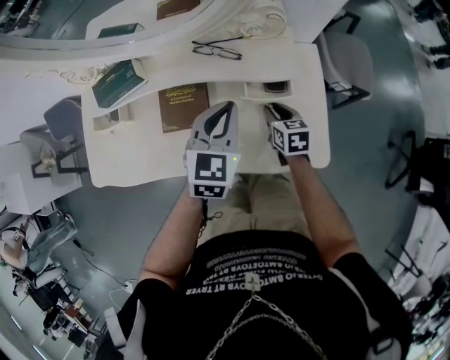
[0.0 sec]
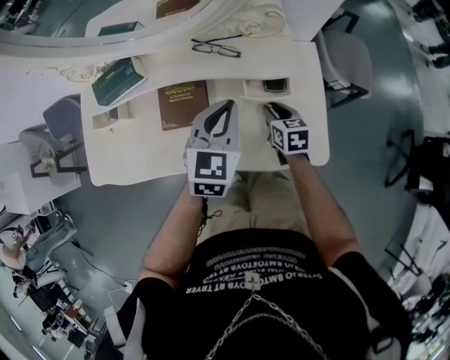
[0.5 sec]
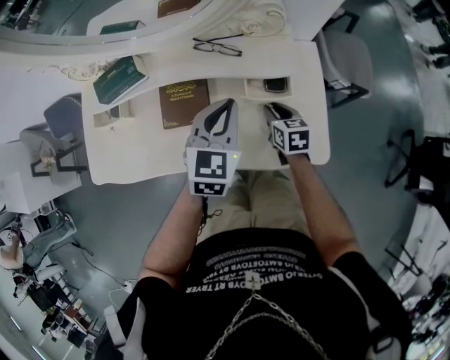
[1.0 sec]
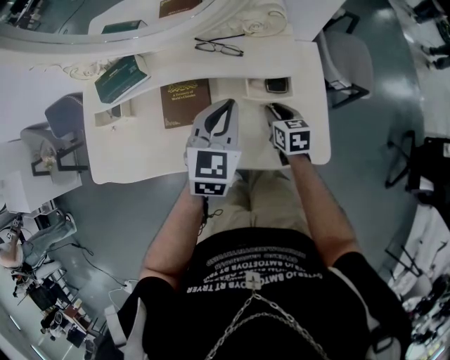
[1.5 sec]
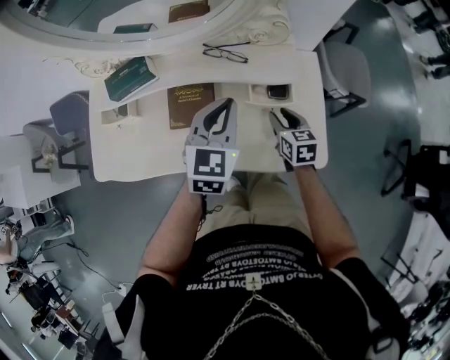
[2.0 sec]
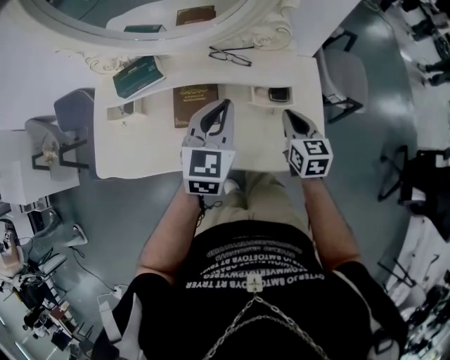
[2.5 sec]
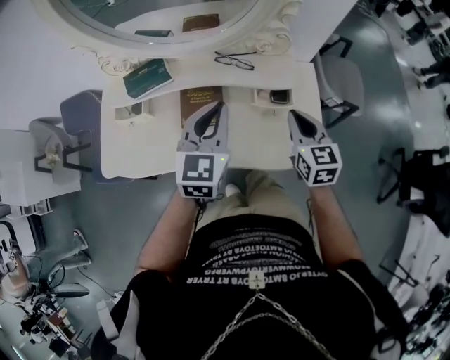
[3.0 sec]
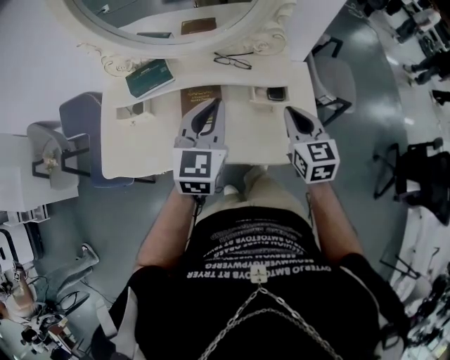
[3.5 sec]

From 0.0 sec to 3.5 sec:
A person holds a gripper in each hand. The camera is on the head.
From 0.0 sec to 2.0 sec: The grippers make only small movements.
From 2.0 sec to 3.5 sec: The right gripper heads upward, covering some 20 cm, rotates roughly 20 degrees, and closes its fingers, while the left gripper shifts some 15 cm upward, to the left and backward.

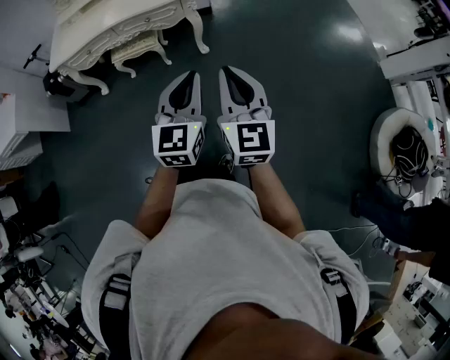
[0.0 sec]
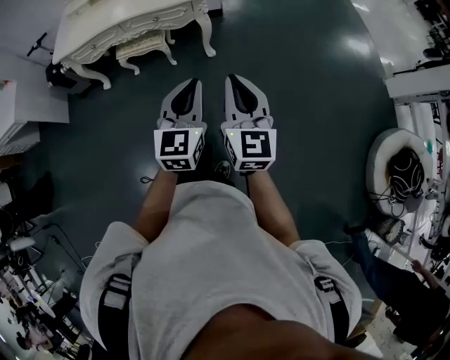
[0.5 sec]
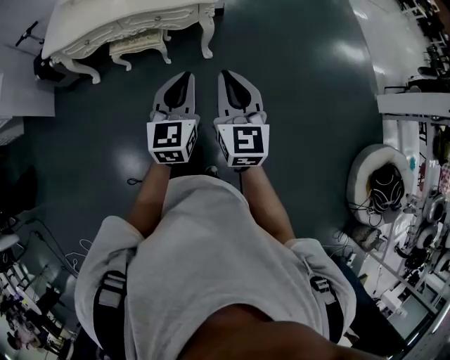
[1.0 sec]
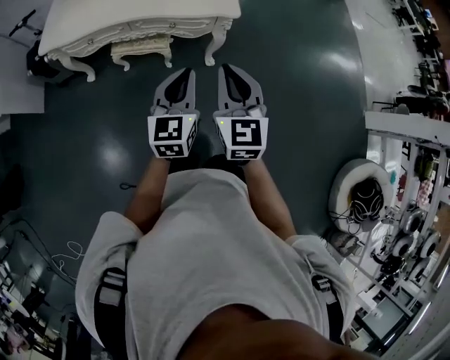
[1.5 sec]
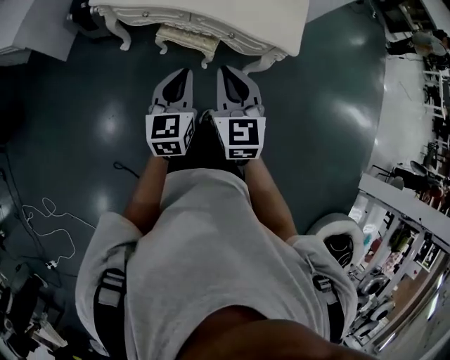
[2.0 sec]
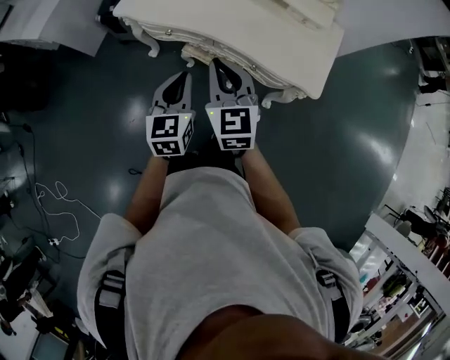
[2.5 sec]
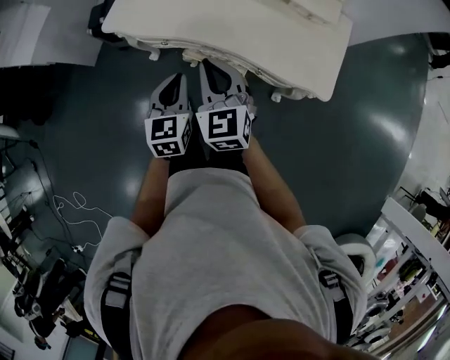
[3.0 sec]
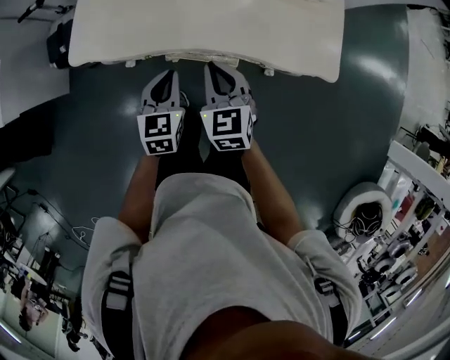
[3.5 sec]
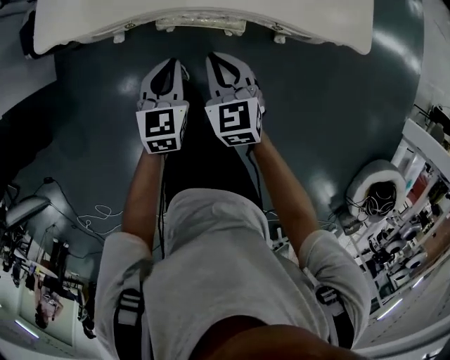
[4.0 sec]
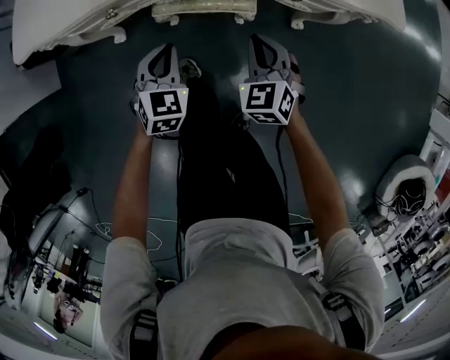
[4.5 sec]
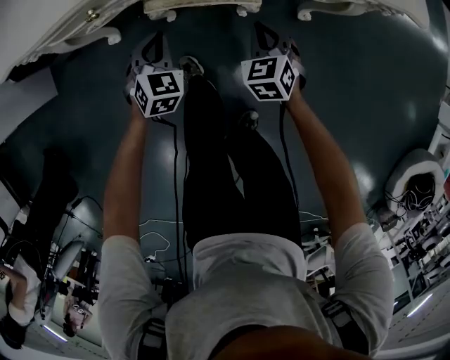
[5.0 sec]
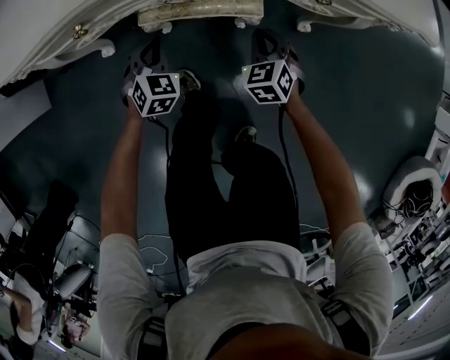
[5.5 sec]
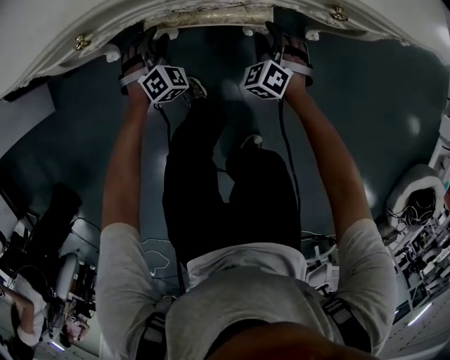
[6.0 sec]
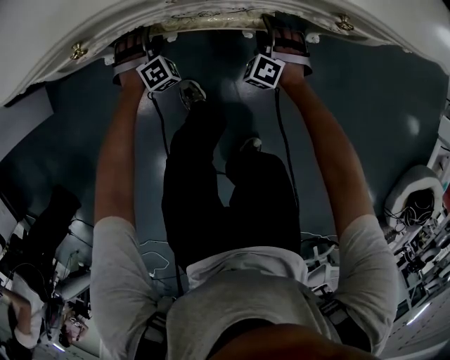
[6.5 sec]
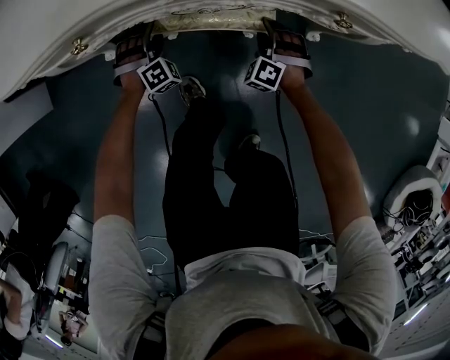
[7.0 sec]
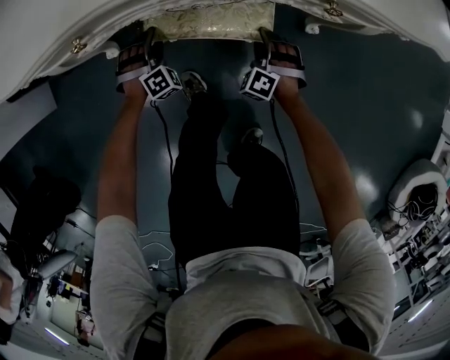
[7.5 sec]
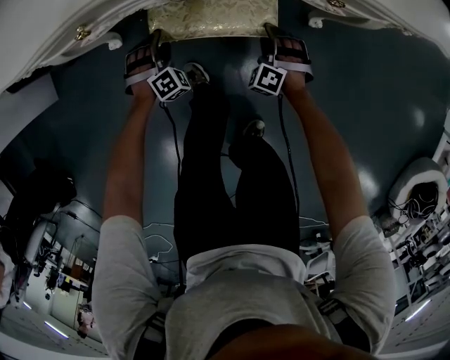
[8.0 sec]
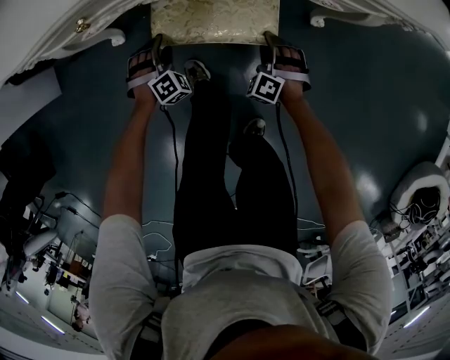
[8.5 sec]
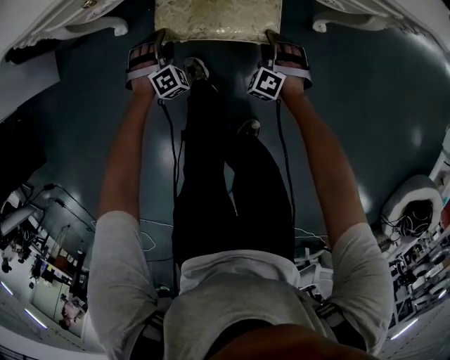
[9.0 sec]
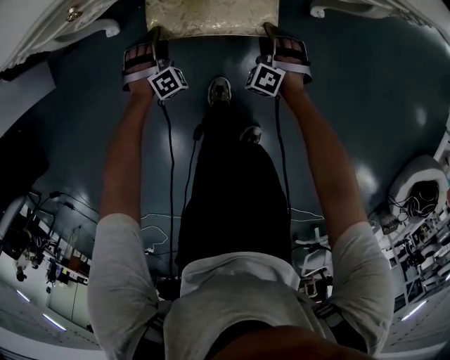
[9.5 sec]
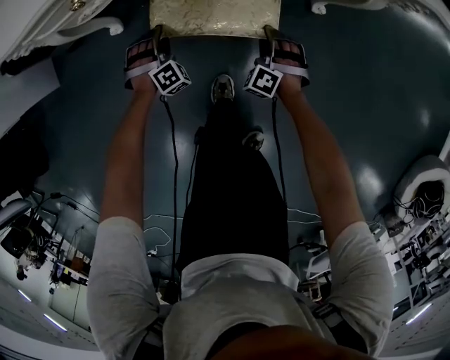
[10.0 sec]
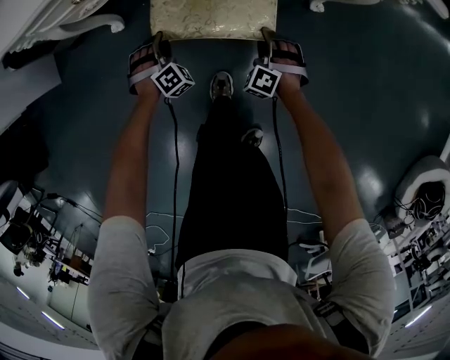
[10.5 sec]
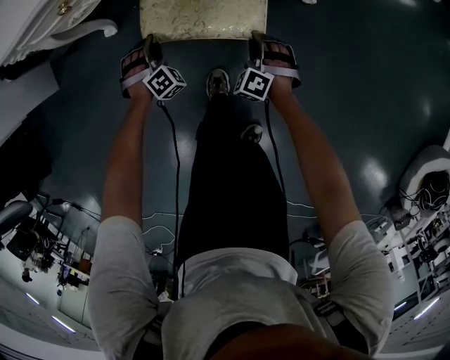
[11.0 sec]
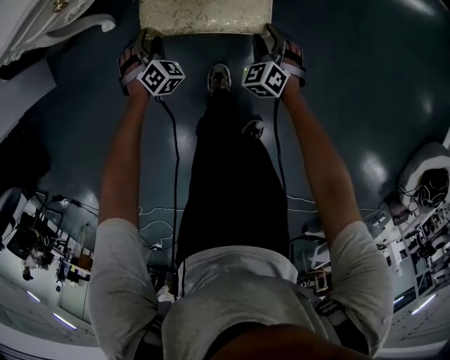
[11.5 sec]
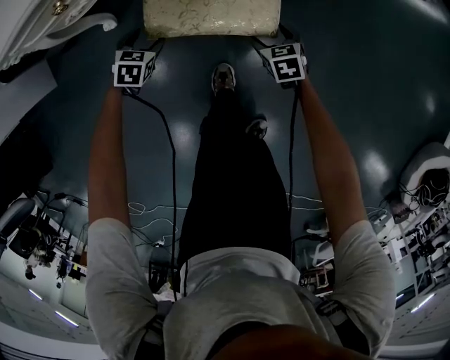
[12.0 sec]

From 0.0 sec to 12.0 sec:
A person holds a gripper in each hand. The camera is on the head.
From 0.0 sec to 2.0 sec: The pair of grippers is taken about 40 cm. The right gripper rotates roughly 30 degrees. The left gripper rotates some 30 degrees.
From 2.0 sec to 4.0 sec: Both grippers travel together downward and forward, roughly 35 cm. The left gripper changes its angle by roughly 30 degrees. The right gripper turns by approximately 20 degrees.
From 4.0 sec to 6.0 sec: The two grippers go some 35 cm downward. The right gripper rotates approximately 50 degrees, and opens its fingers. The left gripper rolls clockwise, seen from behind, by some 60 degrees, and opens.
From 6.0 sec to 8.0 sec: Both grippers travel together backward, approximately 5 cm.
From 8.0 sec to 10.0 sec: The two grippers go about 5 cm backward.
From 10.0 sec to 12.0 sec: The left gripper rotates around the line of its fingers by approximately 50 degrees, counterclockwise from behind; the right gripper rolls clockwise, seen from behind, by some 60 degrees, and opens its fingers.

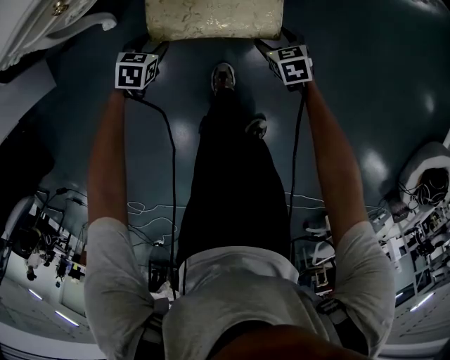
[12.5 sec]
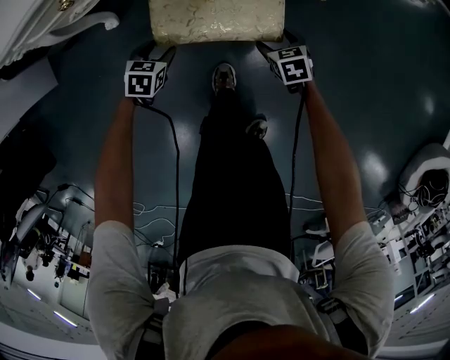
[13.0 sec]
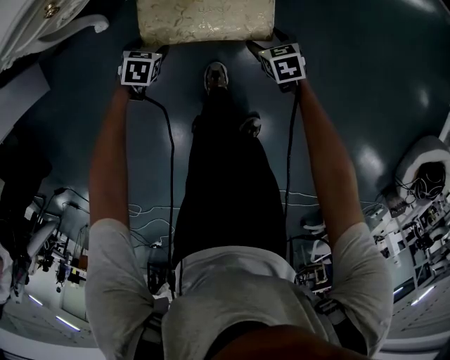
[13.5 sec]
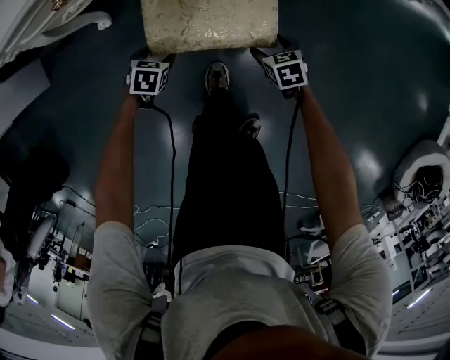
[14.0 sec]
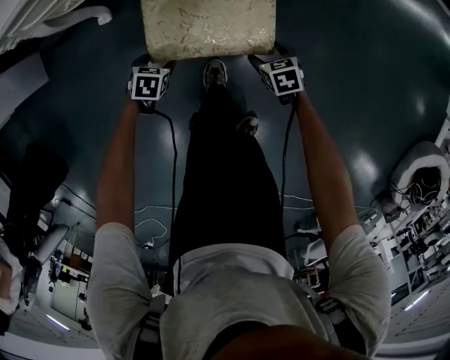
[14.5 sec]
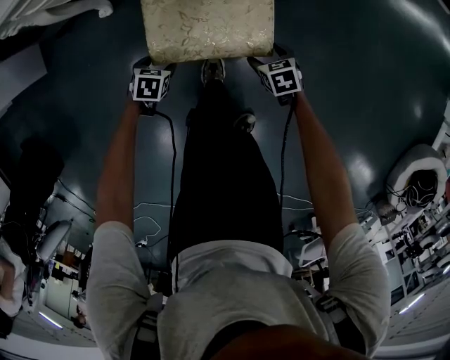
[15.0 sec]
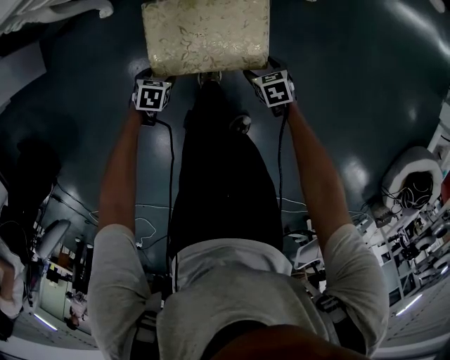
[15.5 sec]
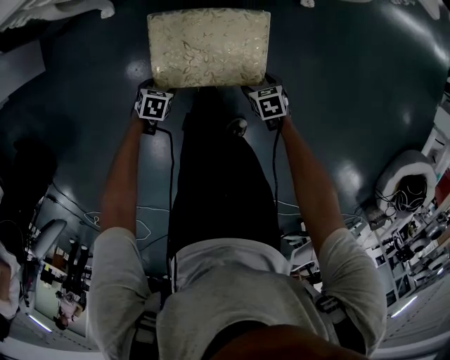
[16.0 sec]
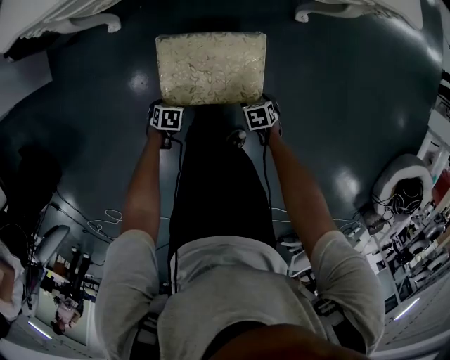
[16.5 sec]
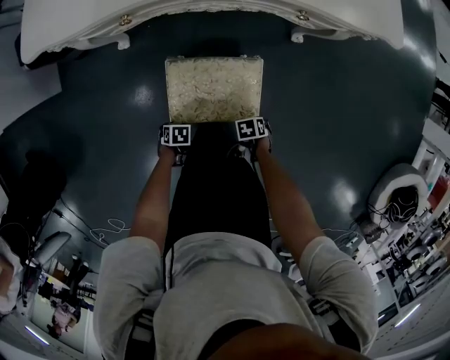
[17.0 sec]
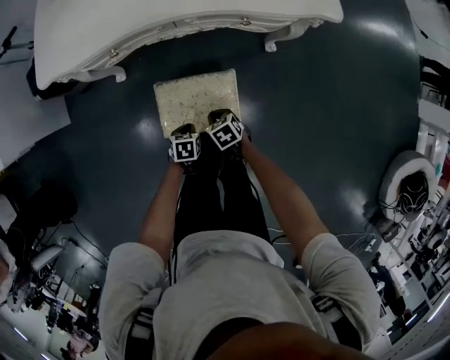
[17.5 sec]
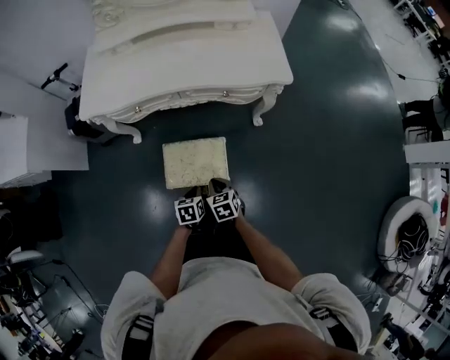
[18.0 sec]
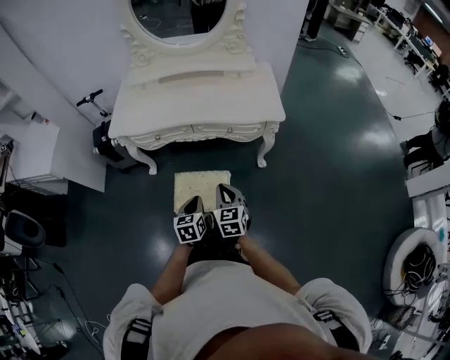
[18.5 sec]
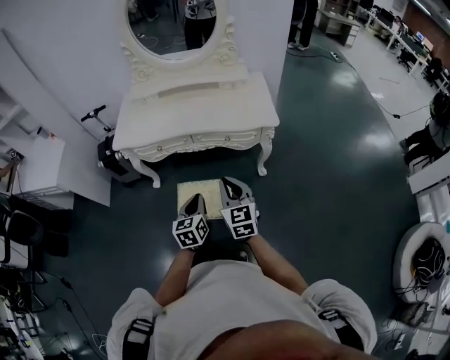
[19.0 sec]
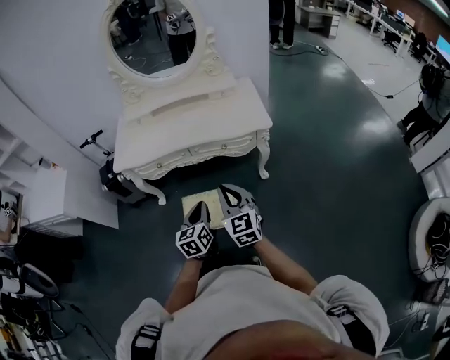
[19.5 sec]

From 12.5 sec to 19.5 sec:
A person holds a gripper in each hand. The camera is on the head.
From 12.5 sec to 14.5 sec: Both grippers travel together backward, roughly 10 cm.
From 14.5 sec to 16.0 sec: The right gripper changes place by some 10 cm. Meanwhile the left gripper moves about 10 cm.
From 16.0 sec to 17.5 sec: Both grippers travel together upward, roughly 20 cm. The right gripper closes its fingers; the left gripper closes.
From 17.5 sec to 19.5 sec: The grippers both shift upward by about 50 cm. The left gripper points its fingers about 50 degrees further upward, while the right gripper angles its fingers upward, by some 50 degrees.

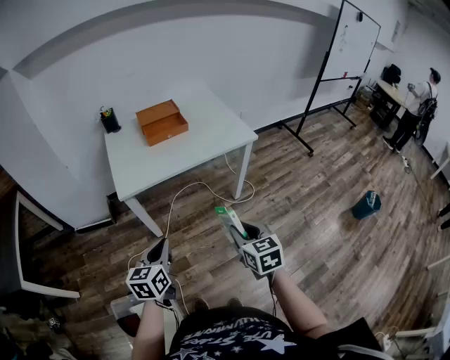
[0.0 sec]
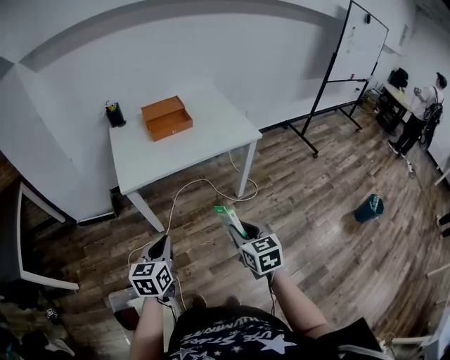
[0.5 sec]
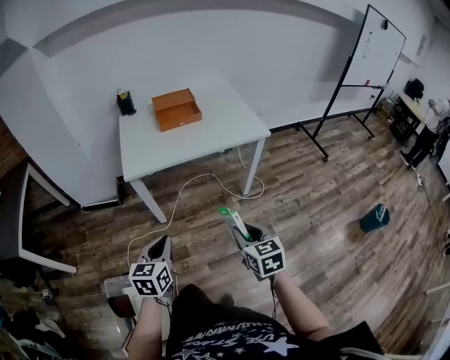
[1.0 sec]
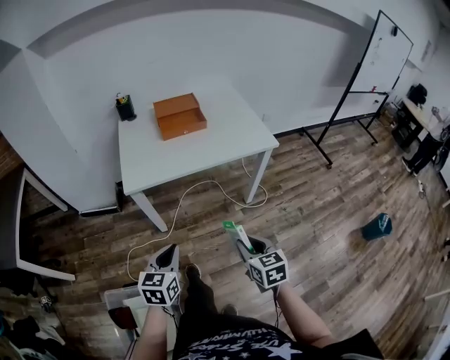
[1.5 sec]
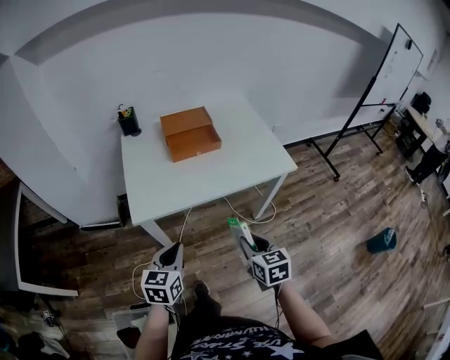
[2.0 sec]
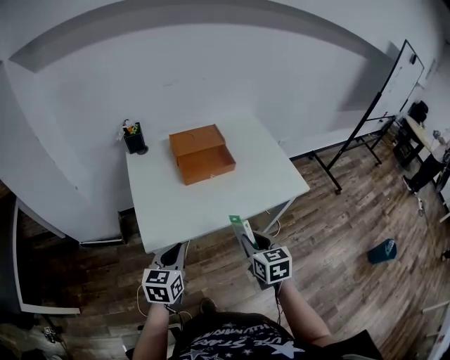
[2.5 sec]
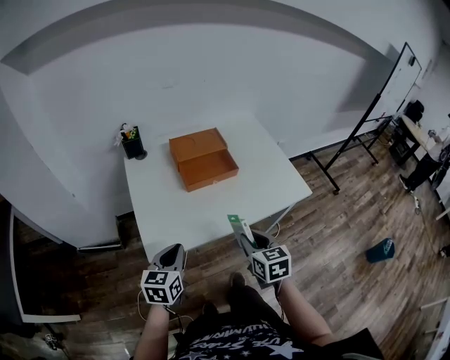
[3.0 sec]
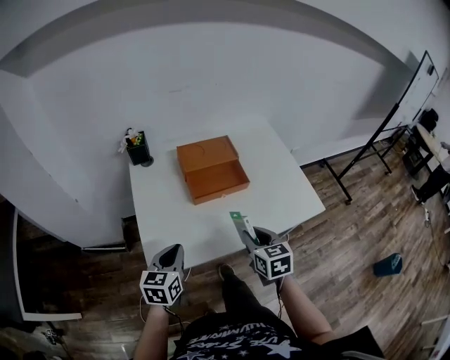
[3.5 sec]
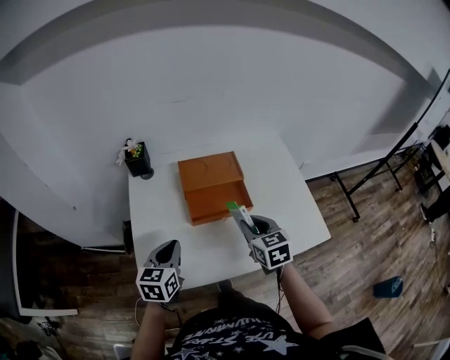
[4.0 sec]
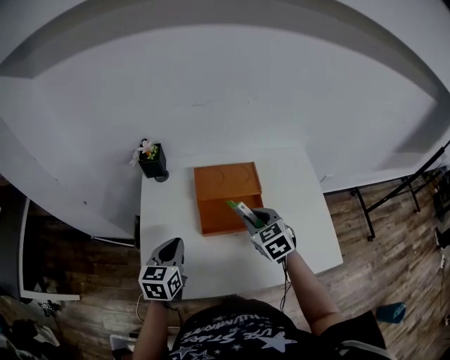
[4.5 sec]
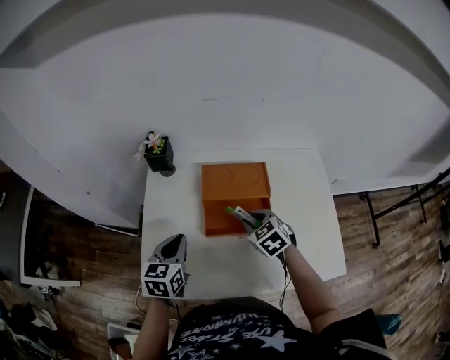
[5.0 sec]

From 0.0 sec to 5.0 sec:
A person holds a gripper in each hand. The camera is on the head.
From 0.0 sec to 2.5 sec: Both grippers move forward, roughly 35 cm.
From 2.5 sec to 5.0 sec: The right gripper shifts by about 40 cm, and turns by some 50 degrees. The left gripper moves some 30 cm, and turns by approximately 20 degrees.
